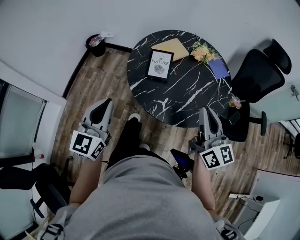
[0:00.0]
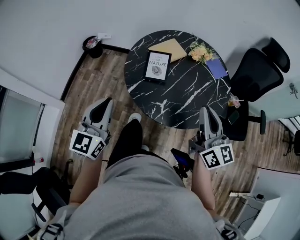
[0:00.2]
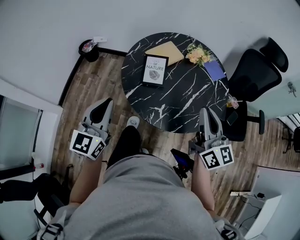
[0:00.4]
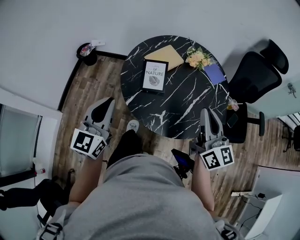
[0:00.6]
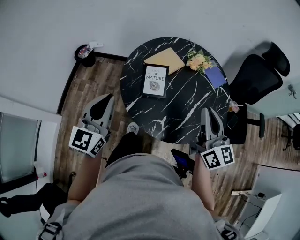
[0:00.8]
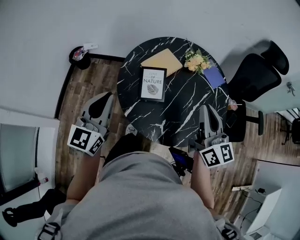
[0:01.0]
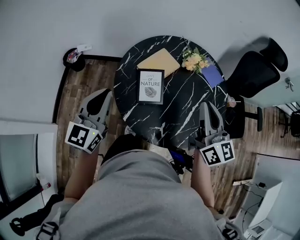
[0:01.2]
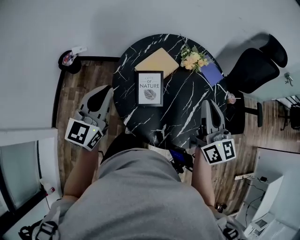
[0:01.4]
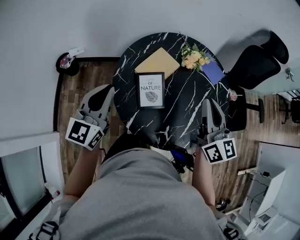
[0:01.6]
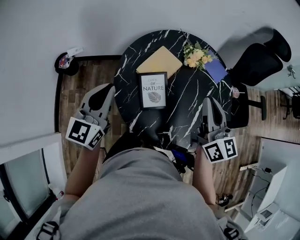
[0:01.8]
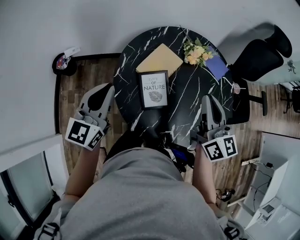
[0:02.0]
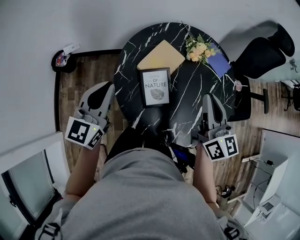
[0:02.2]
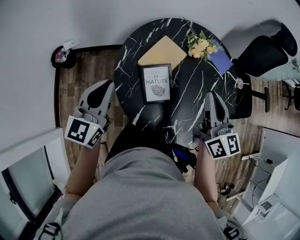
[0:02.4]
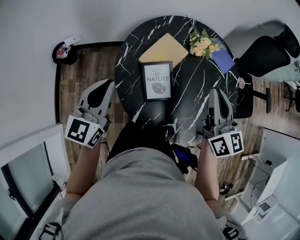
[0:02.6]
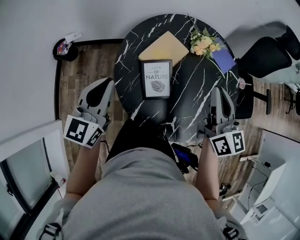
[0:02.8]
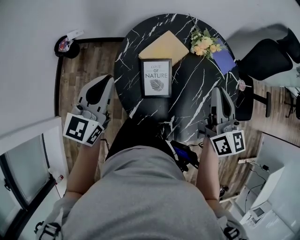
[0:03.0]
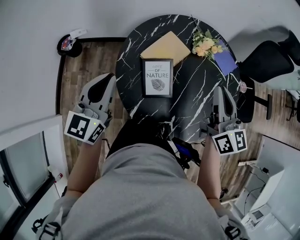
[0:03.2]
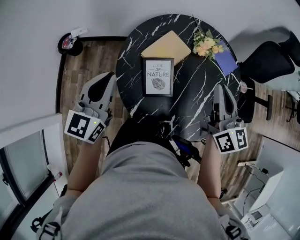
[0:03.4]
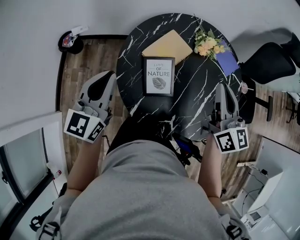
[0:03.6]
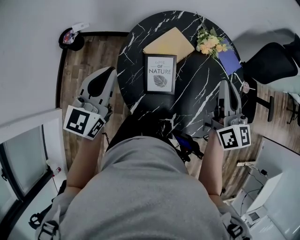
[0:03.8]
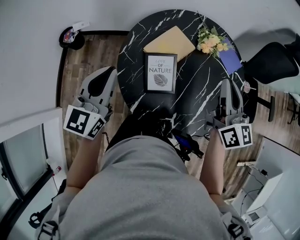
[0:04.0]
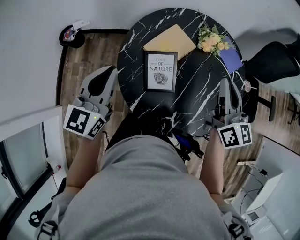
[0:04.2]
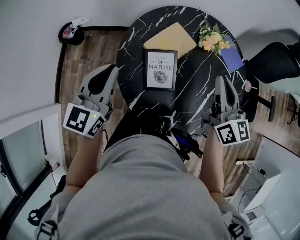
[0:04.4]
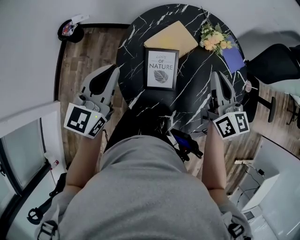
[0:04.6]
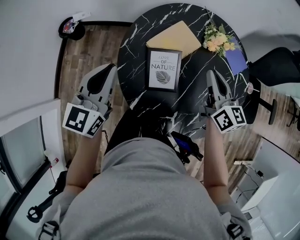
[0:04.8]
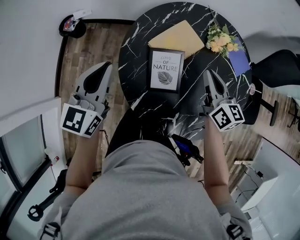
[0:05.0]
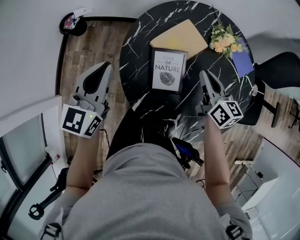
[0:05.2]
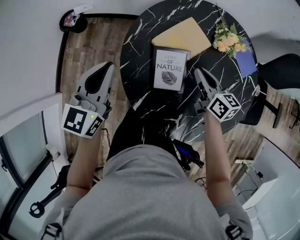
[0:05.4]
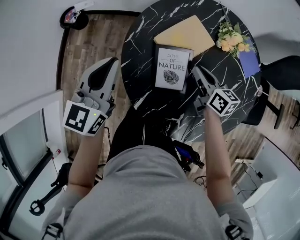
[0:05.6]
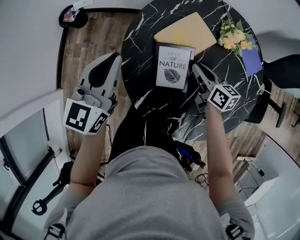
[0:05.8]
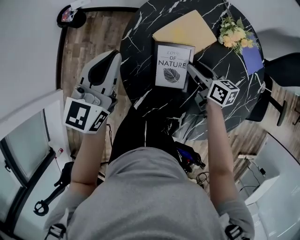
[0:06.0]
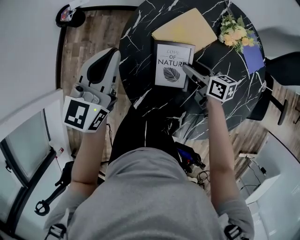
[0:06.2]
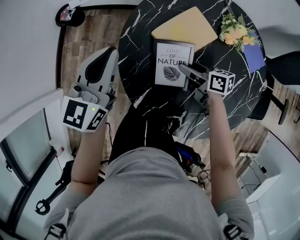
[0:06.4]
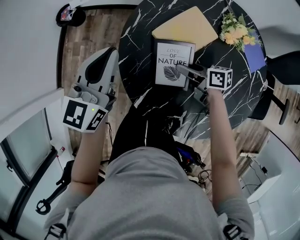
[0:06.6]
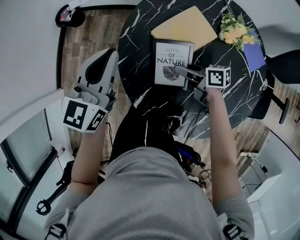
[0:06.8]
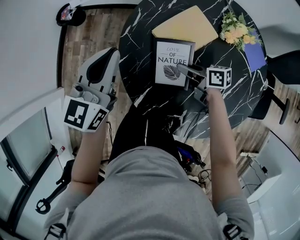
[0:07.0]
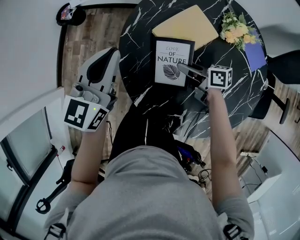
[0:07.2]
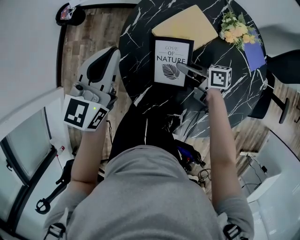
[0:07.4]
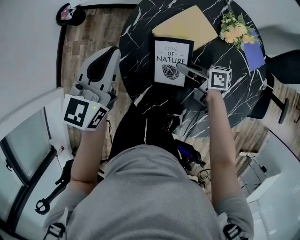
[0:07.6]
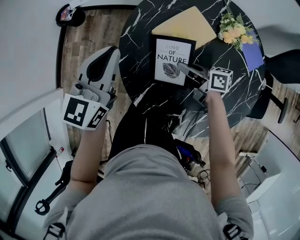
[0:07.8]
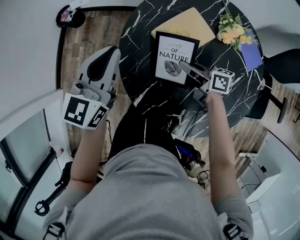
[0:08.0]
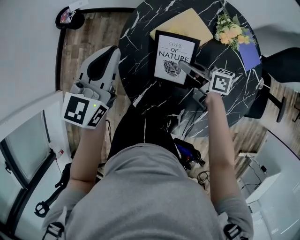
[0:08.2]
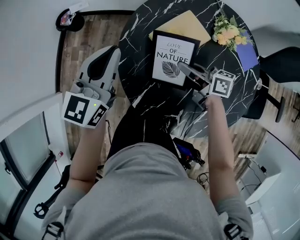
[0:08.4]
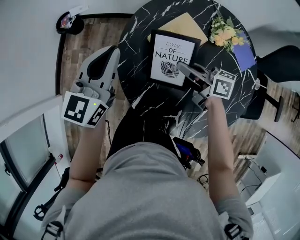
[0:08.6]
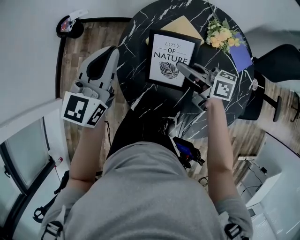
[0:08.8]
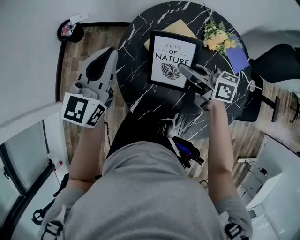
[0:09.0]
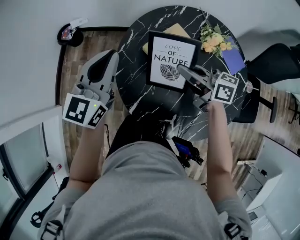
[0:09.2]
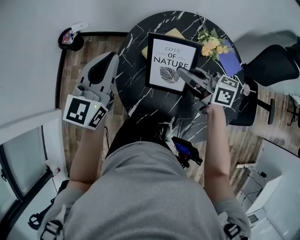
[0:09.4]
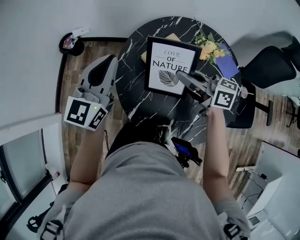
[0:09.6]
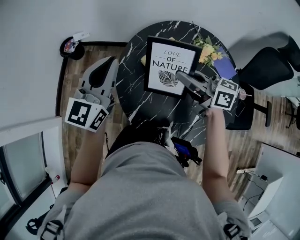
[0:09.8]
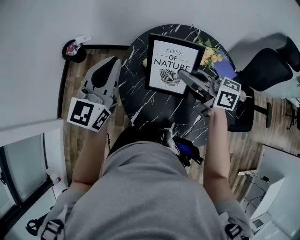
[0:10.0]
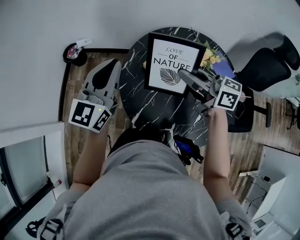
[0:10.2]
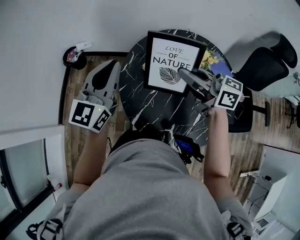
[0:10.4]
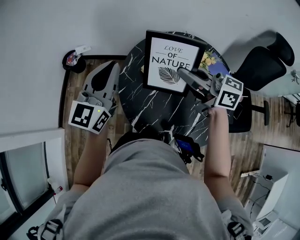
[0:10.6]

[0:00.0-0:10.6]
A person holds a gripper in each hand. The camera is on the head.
0:00.0 to 0:01.6: Both grippers move forward, approximately 25 cm.
0:01.6 to 0:03.0: The grippers make only small movements.
0:03.0 to 0:04.6: The right gripper shifts some 5 cm downward.
0:04.6 to 0:06.0: The left gripper is displaced forward by roughly 5 cm. Meanwhile the right gripper travels downward by approximately 25 cm, rotates approximately 40 degrees, and opens its fingers.
0:06.0 to 0:07.6: The right gripper shifts roughly 5 cm to the left, changes its angle by roughly 30 degrees, and closes its fingers.
0:07.6 to 0:09.0: The left gripper is displaced upward by some 5 cm; the right gripper shifts about 15 cm upward, and rotates some 20 degrees.
0:09.0 to 0:10.6: The right gripper goes roughly 20 cm upward, and turns by about 20 degrees, while the left gripper shifts some 10 cm upward.

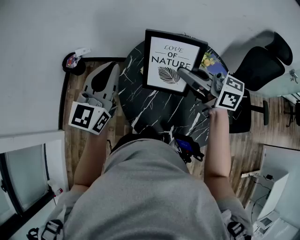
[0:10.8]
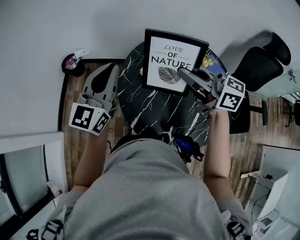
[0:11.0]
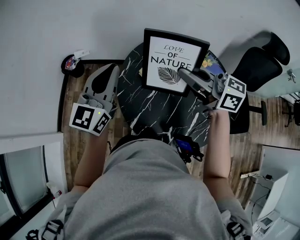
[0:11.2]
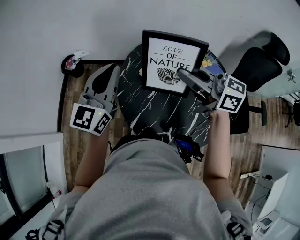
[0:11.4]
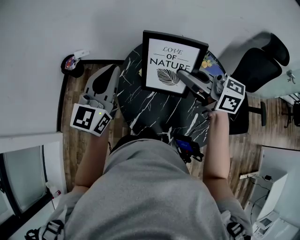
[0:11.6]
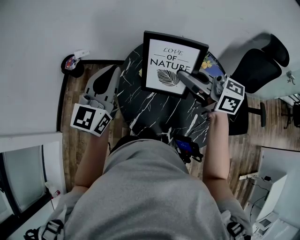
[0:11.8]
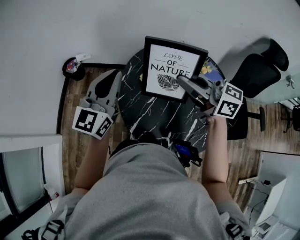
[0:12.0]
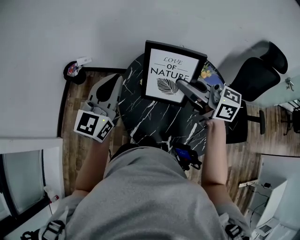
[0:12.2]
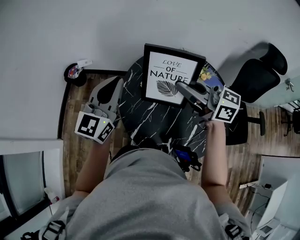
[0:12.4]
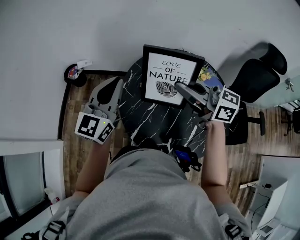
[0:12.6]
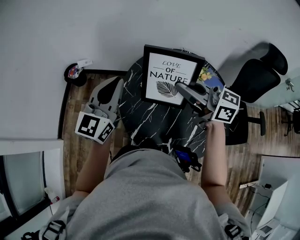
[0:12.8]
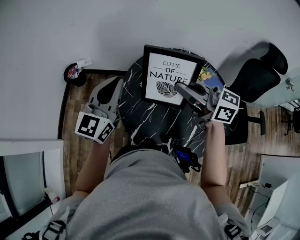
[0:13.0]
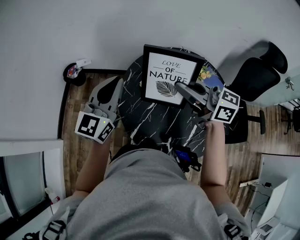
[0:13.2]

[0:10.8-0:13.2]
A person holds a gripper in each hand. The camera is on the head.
0:10.8 to 0:12.0: The grippers make only small movements.
0:12.0 to 0:13.2: Both grippers stay about where they are.

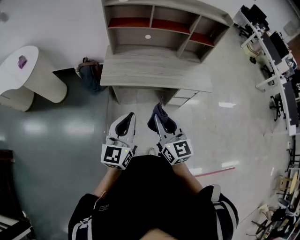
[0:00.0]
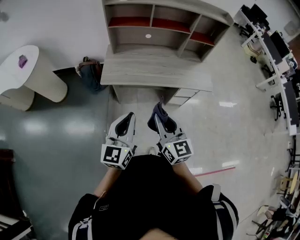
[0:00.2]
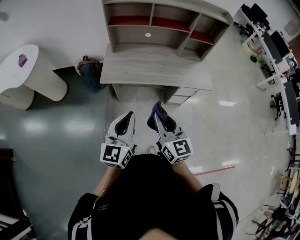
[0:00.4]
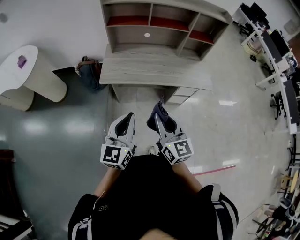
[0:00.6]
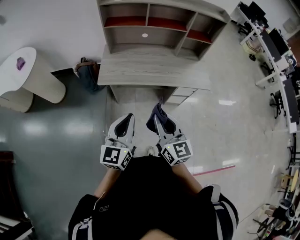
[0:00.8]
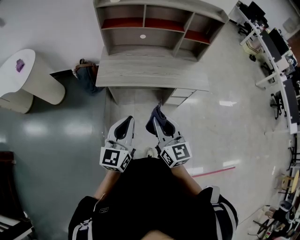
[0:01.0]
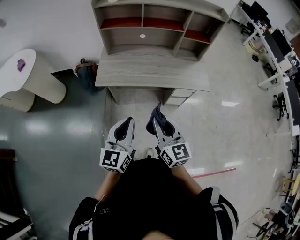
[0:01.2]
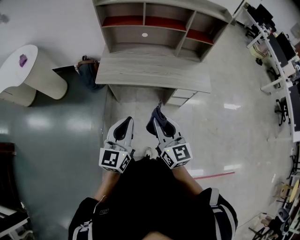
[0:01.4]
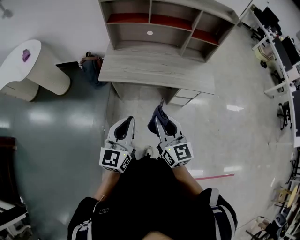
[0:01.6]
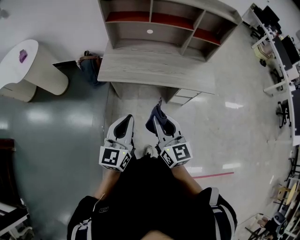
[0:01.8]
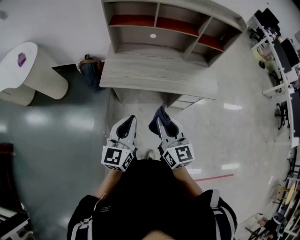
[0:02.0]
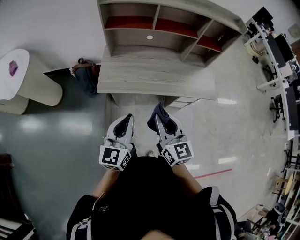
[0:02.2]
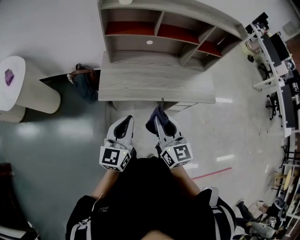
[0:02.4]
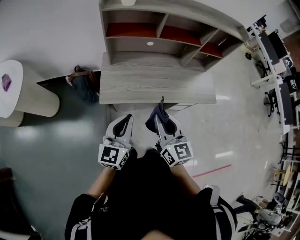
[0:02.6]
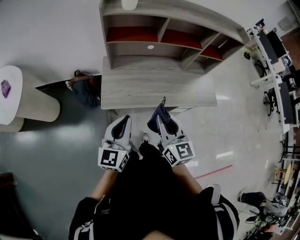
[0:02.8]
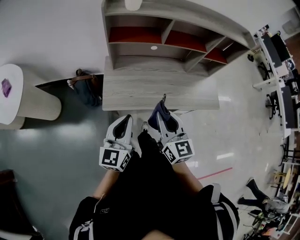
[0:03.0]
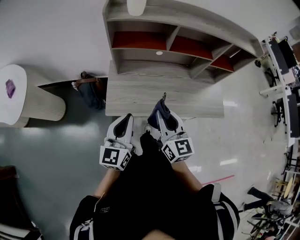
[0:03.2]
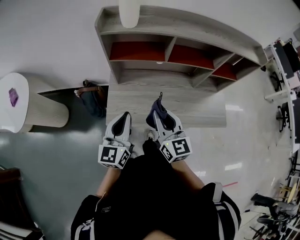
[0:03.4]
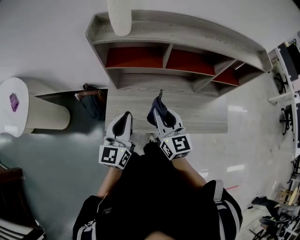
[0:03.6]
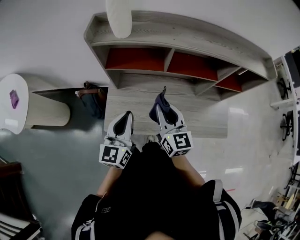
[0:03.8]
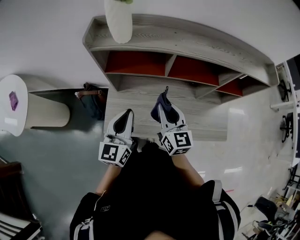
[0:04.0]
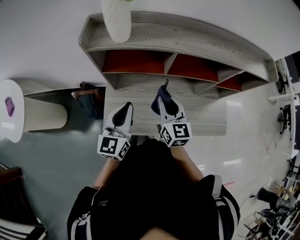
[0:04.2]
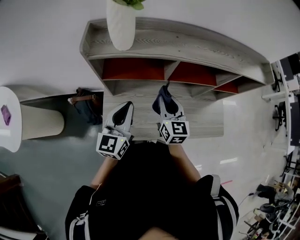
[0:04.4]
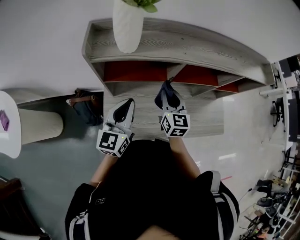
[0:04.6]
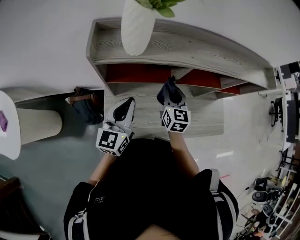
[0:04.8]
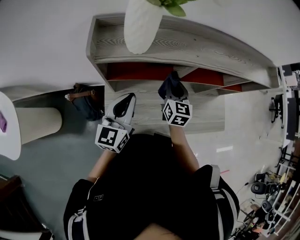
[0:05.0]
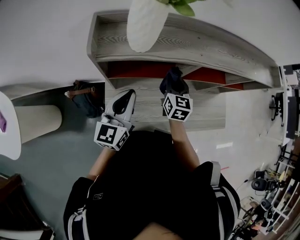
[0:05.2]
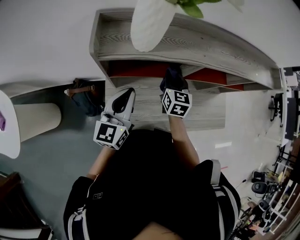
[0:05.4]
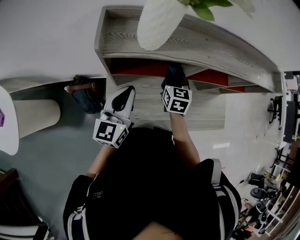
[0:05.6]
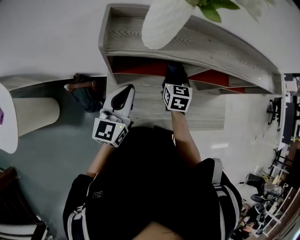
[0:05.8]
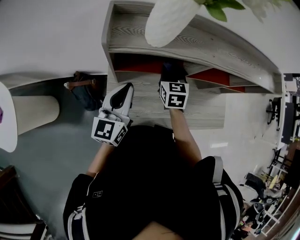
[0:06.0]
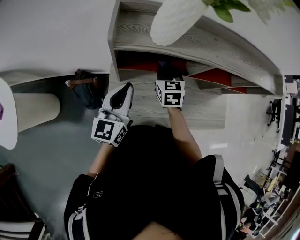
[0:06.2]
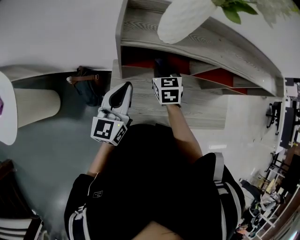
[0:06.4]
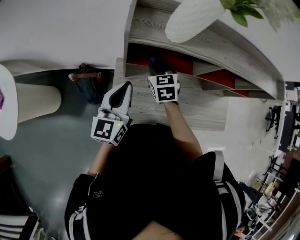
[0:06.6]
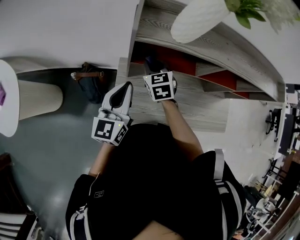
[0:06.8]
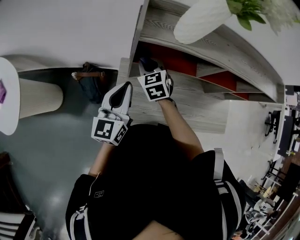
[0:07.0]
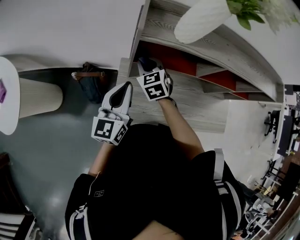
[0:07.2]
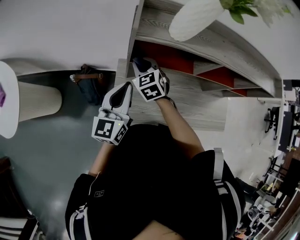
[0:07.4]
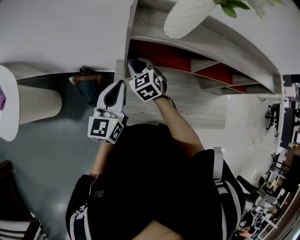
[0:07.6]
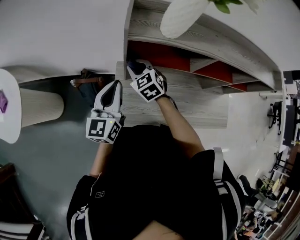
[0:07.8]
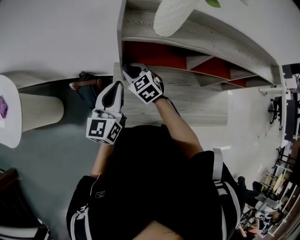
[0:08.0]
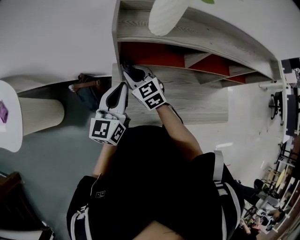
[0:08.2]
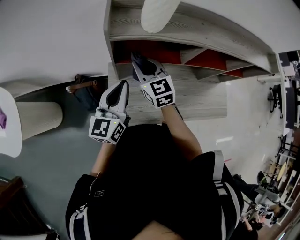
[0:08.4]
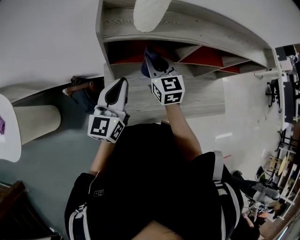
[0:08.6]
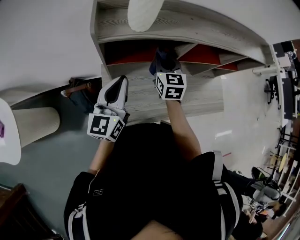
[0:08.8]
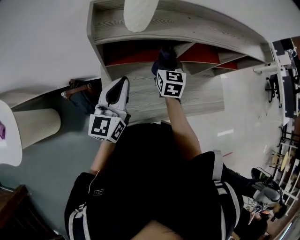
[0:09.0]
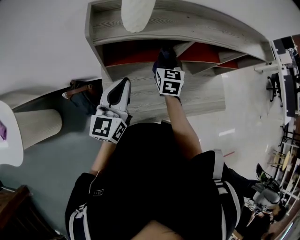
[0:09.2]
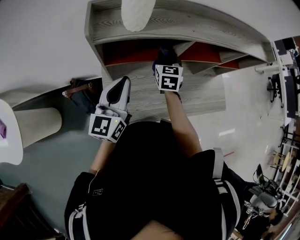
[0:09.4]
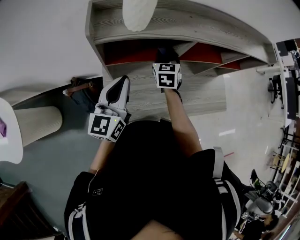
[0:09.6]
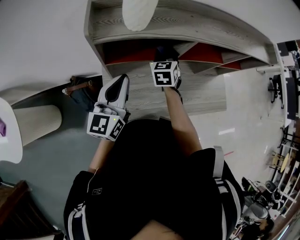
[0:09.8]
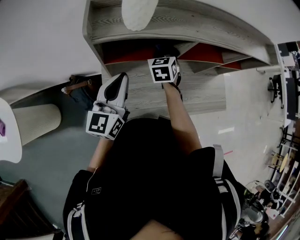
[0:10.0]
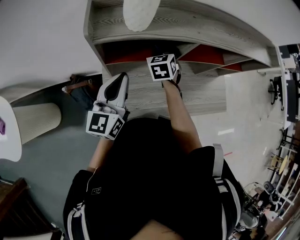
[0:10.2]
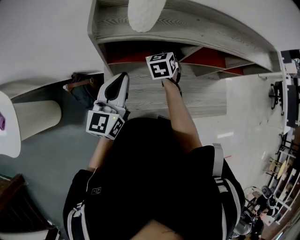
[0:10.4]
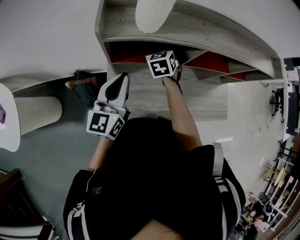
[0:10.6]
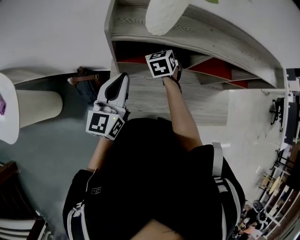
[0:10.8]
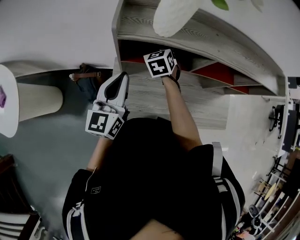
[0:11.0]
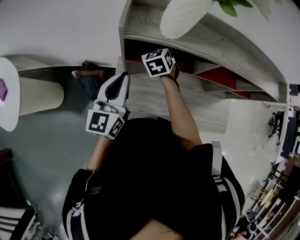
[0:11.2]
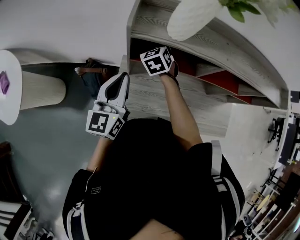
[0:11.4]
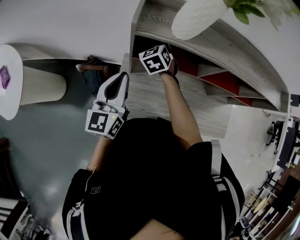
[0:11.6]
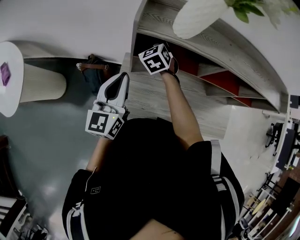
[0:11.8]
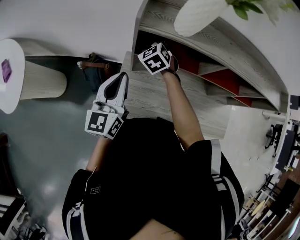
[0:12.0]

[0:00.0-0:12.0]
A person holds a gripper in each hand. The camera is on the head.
0:00.0 to 0:01.6: Both grippers travel together to the right, roughly 5 cm.
0:01.6 to 0:03.0: Both grippers move forward and to the left, about 30 cm.
0:03.0 to 0:04.4: The grippers both shift forward by roughly 30 cm.
0:04.4 to 0:06.0: The right gripper heads forward, to the left and downward, covering roughly 15 cm, and swivels approximately 20 degrees, while the left gripper moves to the left, some 10 cm.
0:06.0 to 0:07.6: The left gripper heads to the left, covering roughly 10 cm. Meanwhile the right gripper travels to the left by roughly 20 cm, and swivels some 30 degrees.
0:07.6 to 0:09.0: The right gripper moves approximately 25 cm, and turns by some 50 degrees, while the left gripper ends up about 10 cm from where it was.
0:09.0 to 0:10.4: The right gripper heads to the left, covering some 5 cm, and rotates about 30 degrees.
0:10.4 to 0:12.0: The left gripper moves some 10 cm, while the right gripper changes place by some 20 cm, and rotates about 40 degrees.
